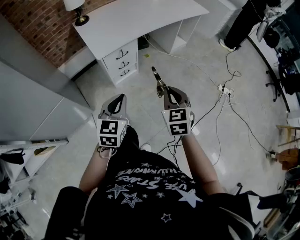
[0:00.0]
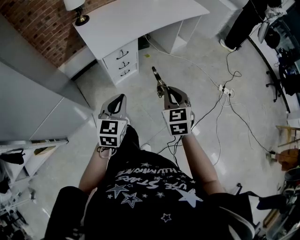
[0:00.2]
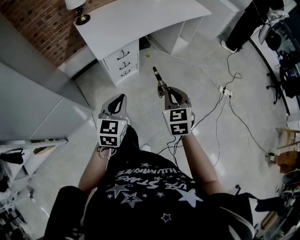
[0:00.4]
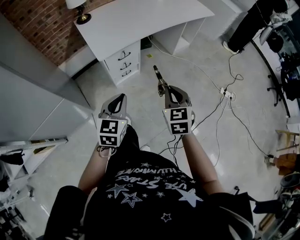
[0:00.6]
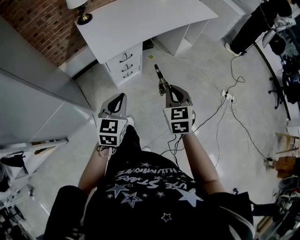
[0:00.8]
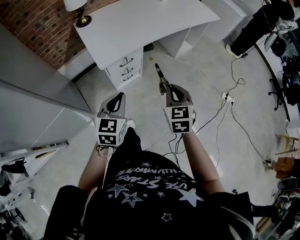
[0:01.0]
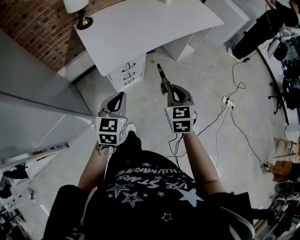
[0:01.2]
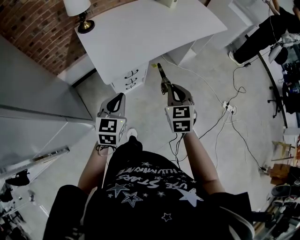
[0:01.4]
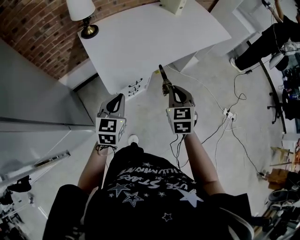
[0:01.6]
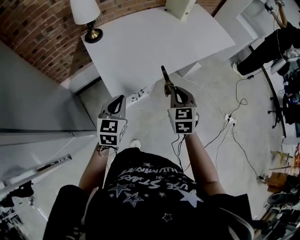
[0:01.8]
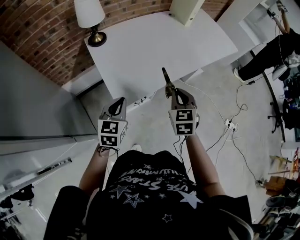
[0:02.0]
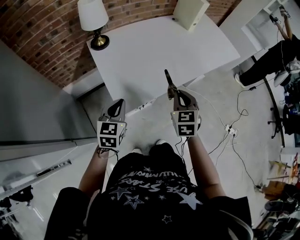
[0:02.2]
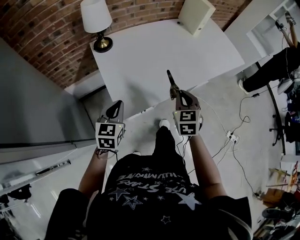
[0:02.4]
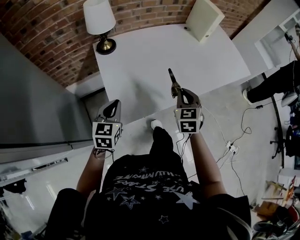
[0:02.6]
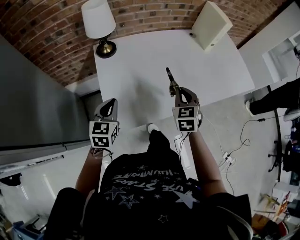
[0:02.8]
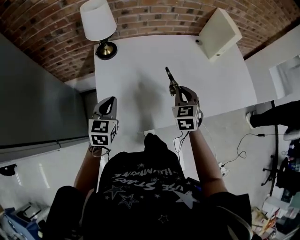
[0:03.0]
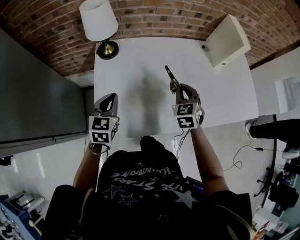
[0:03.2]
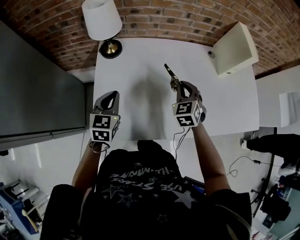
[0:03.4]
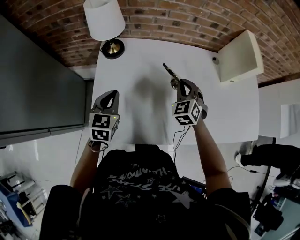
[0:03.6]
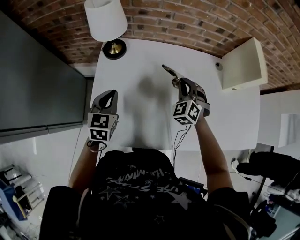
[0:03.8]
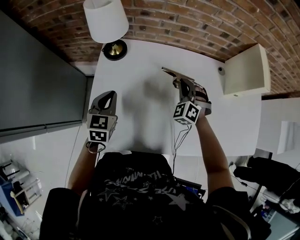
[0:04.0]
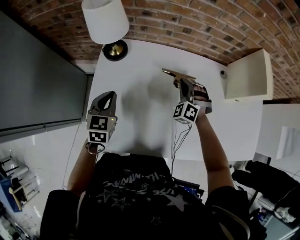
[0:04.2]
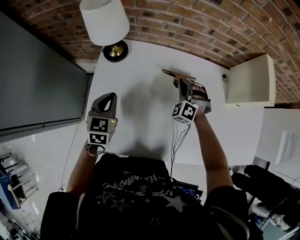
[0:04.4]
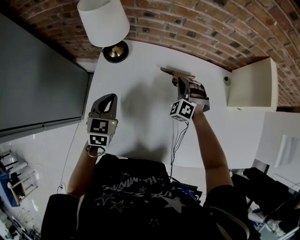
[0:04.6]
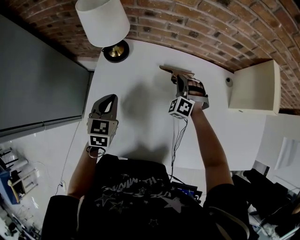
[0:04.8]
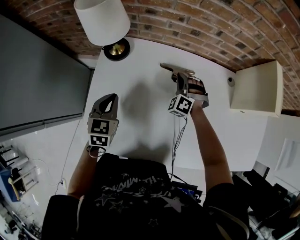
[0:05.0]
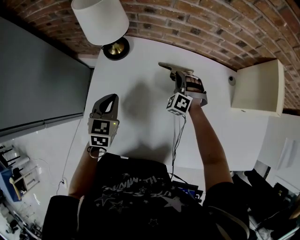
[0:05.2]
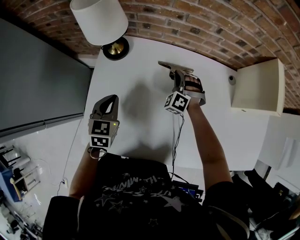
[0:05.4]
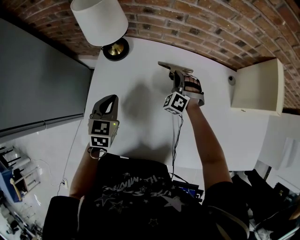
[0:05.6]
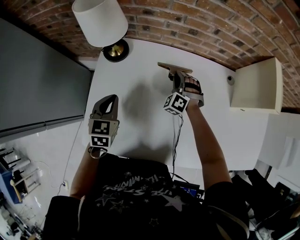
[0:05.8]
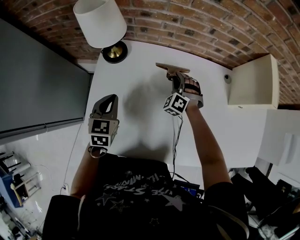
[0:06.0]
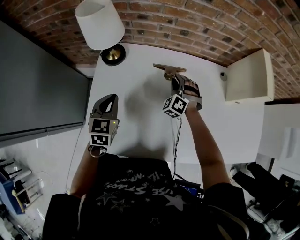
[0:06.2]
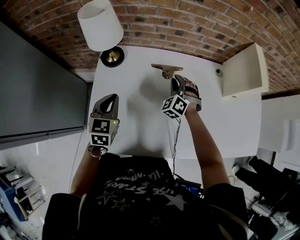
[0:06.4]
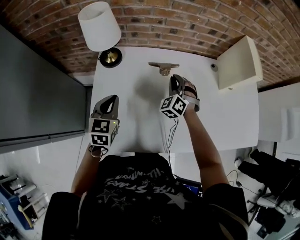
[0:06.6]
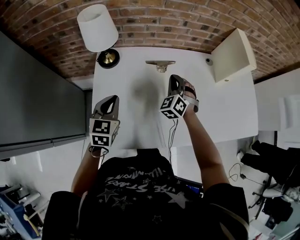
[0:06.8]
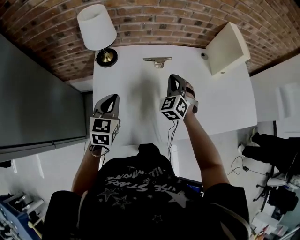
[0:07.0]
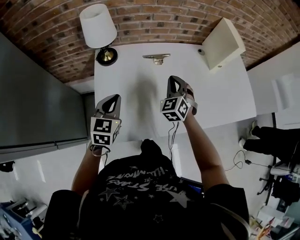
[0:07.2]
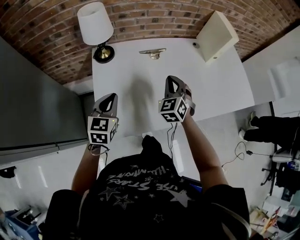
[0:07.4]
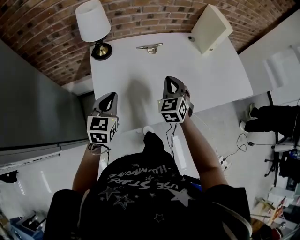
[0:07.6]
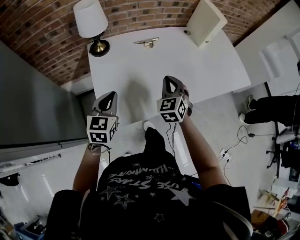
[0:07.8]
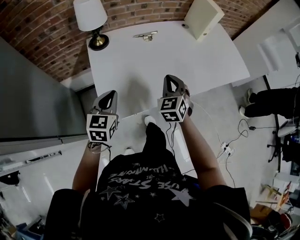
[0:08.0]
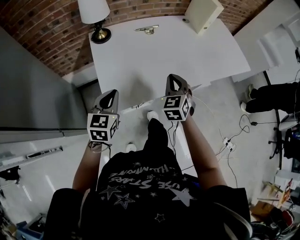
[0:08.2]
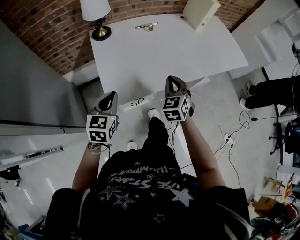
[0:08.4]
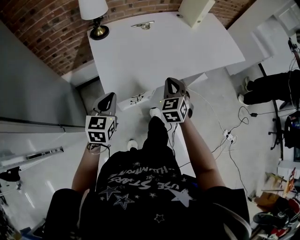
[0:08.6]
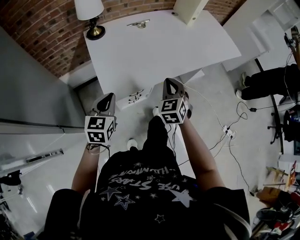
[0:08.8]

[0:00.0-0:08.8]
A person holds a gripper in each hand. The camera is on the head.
0:00.0 to 0:01.4: The left gripper travels forward and to the left by some 25 cm. Meanwhile the right gripper is displaced forward by roughly 25 cm.
0:01.4 to 0:03.0: Both grippers move forward, approximately 35 cm. The left gripper rotates roughly 20 degrees; the right gripper turns by about 20 degrees.
0:03.0 to 0:04.4: The right gripper goes some 25 cm forward and downward, and rolls counterclockwise, seen from behind, by some 60 degrees. Meanwhile the left gripper shifts approximately 15 cm forward.
0:04.4 to 0:05.8: The right gripper shifts by approximately 5 cm.
0:05.8 to 0:07.4: The left gripper moves backward and upward, some 15 cm, and turns by about 30 degrees, while the right gripper goes about 30 cm backward and upward, and rolls clockwise, seen from behind, by approximately 40 degrees.
0:07.4 to 0:08.8: Both grippers travel together backward, some 25 cm.

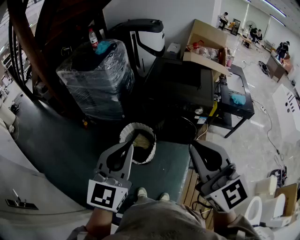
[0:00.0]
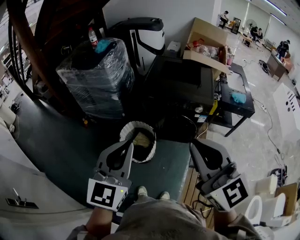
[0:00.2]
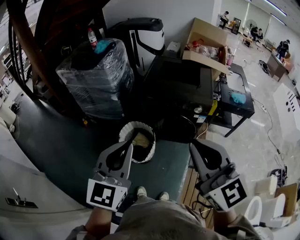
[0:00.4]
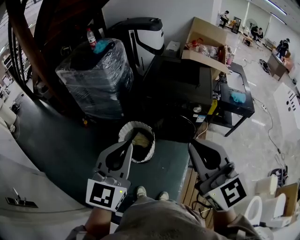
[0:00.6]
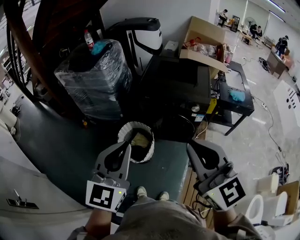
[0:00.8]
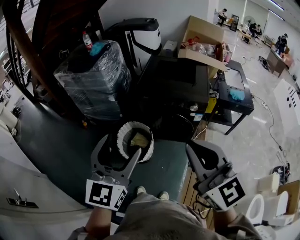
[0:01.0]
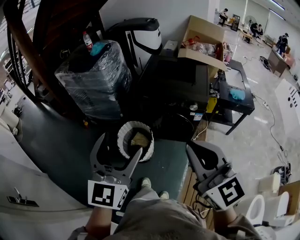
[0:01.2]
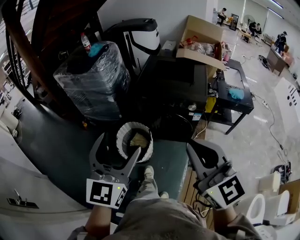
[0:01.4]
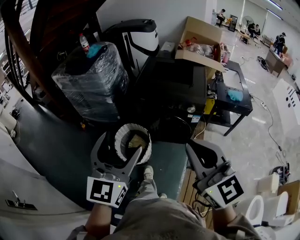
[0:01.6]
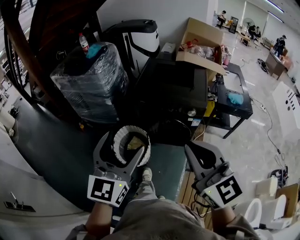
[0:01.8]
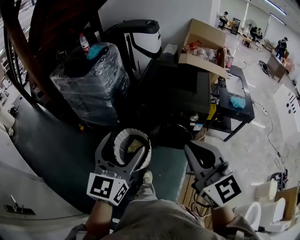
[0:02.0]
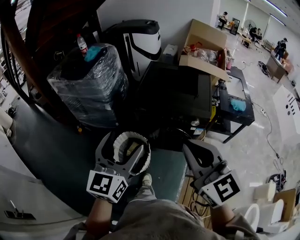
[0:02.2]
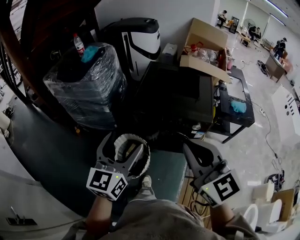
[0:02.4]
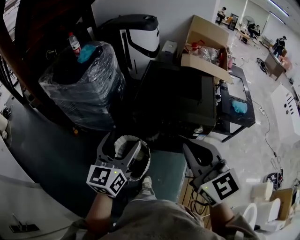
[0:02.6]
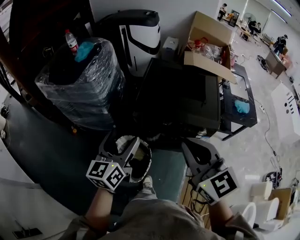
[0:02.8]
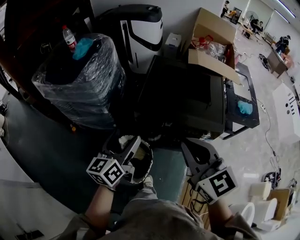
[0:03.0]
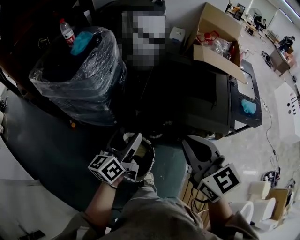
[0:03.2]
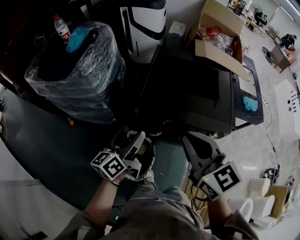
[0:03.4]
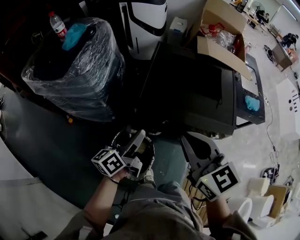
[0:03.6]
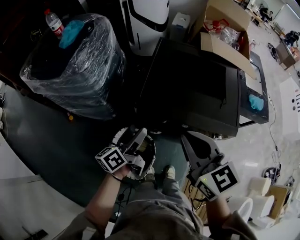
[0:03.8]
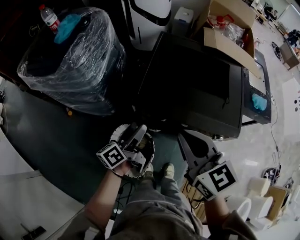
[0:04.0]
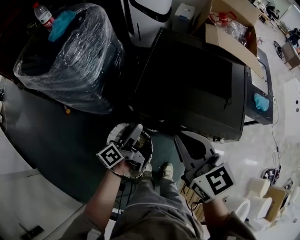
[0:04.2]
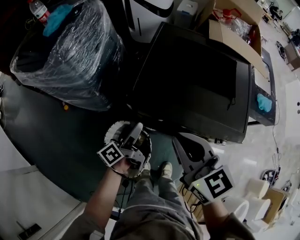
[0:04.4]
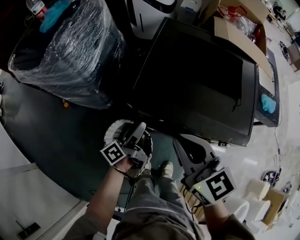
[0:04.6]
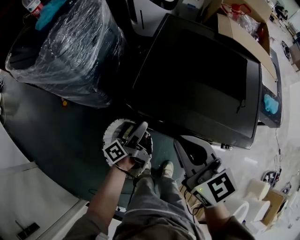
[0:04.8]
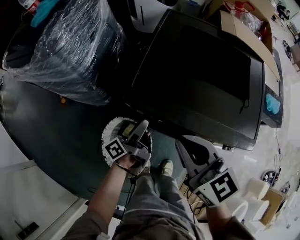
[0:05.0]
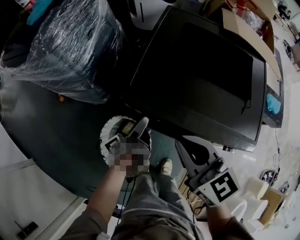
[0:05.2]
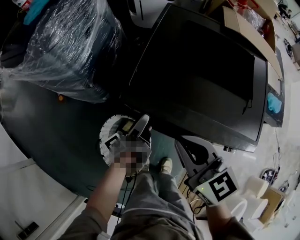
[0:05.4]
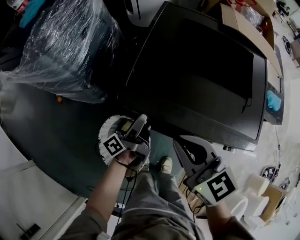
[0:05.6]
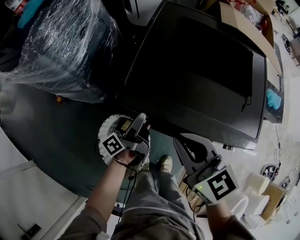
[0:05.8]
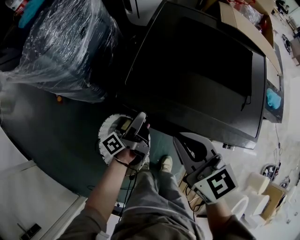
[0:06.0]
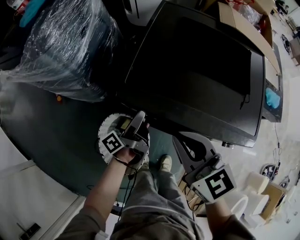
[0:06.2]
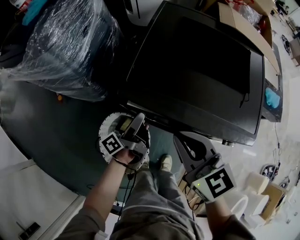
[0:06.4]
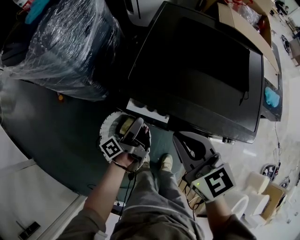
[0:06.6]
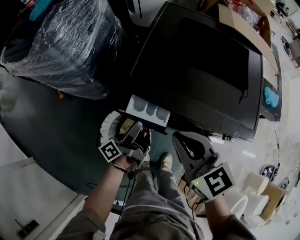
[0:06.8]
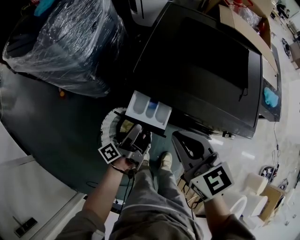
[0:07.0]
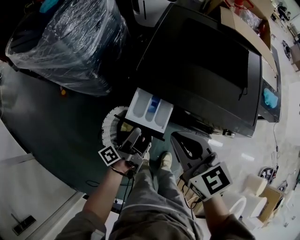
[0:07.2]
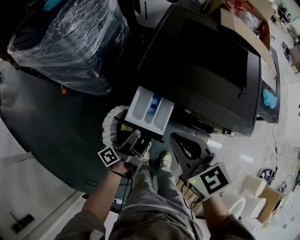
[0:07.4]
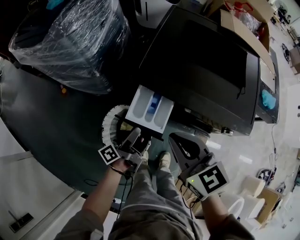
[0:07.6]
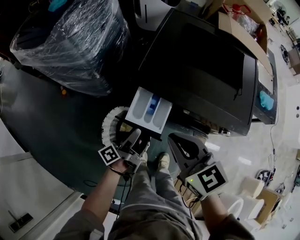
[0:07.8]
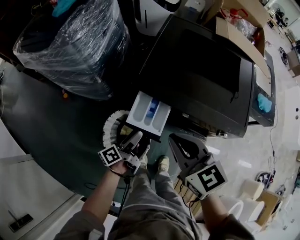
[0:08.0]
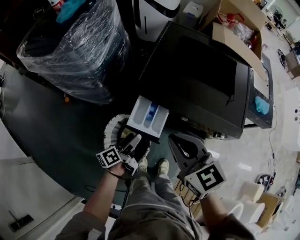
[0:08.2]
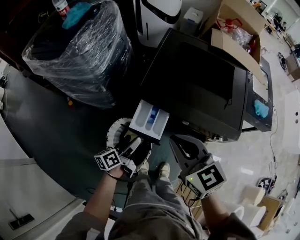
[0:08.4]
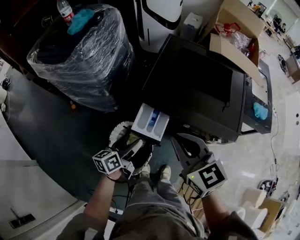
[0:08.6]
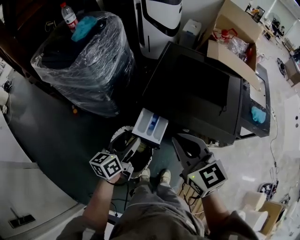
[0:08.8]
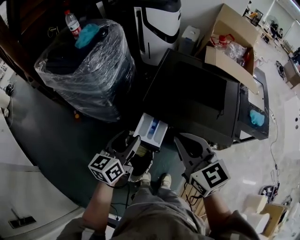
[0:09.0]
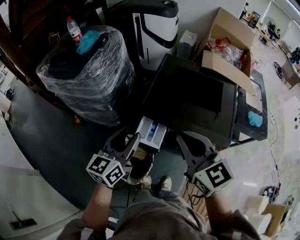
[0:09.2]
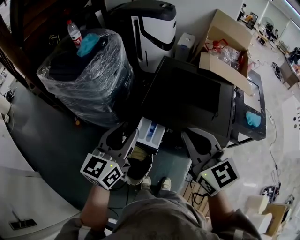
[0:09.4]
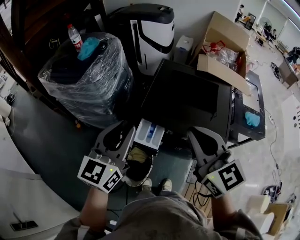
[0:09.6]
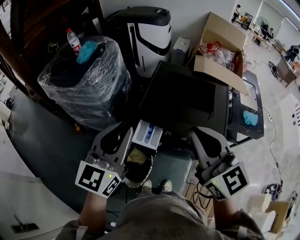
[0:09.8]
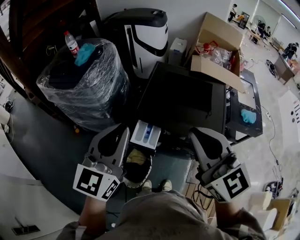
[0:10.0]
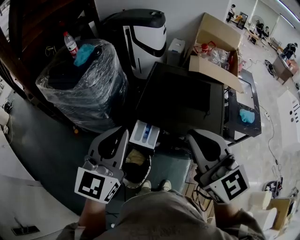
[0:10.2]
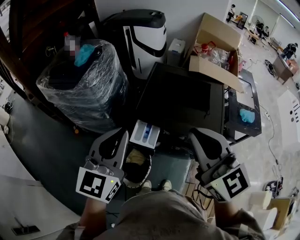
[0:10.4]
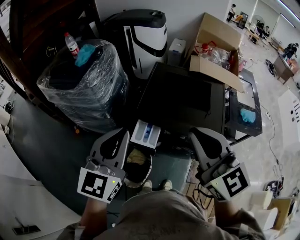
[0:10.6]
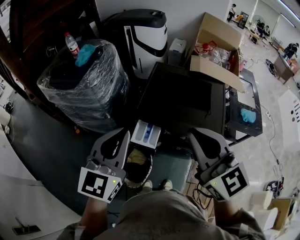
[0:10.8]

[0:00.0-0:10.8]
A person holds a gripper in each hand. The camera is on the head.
0:00.0 to 0:01.6: The two grippers go some 5 cm to the right. The left gripper opens its fingers.
0:01.6 to 0:03.0: The right gripper goes approximately 30 cm forward; the left gripper heads forward and downward, covering about 35 cm, and turns by about 40 degrees.
0:03.0 to 0:04.6: Both grippers travel together downward and forward, some 25 cm. The left gripper rotates around the line of its fingers by some 50 degrees, counterclockwise from behind.
0:04.6 to 0:06.2: The right gripper shifts roughly 5 cm downward, while the left gripper shifts by roughly 5 cm.
0:06.2 to 0:07.8: The right gripper goes about 10 cm backward. The left gripper shifts approximately 15 cm backward and to the left.
0:07.8 to 0:09.2: The left gripper travels upward by roughly 30 cm, rotates around the line of its fingers by approximately 60 degrees, clockwise from behind, and closes its fingers. The right gripper shifts roughly 20 cm upward.
0:09.2 to 0:10.8: The right gripper heads upward and backward, covering some 15 cm, while the left gripper moves upward, approximately 15 cm, rotates about 30 degrees, and closes up.

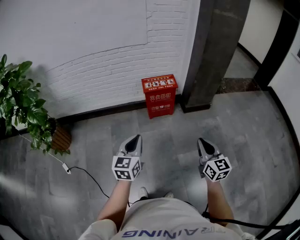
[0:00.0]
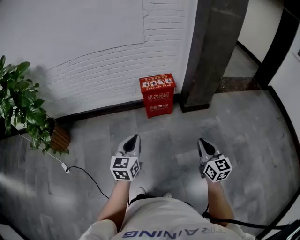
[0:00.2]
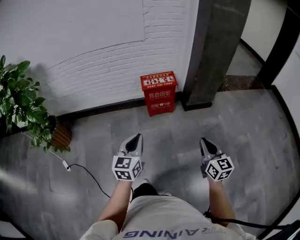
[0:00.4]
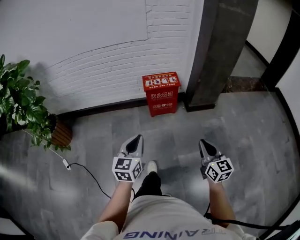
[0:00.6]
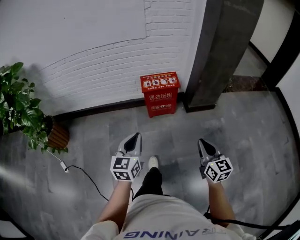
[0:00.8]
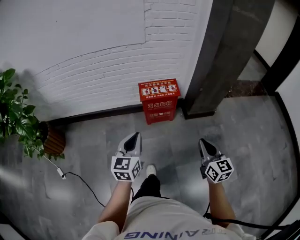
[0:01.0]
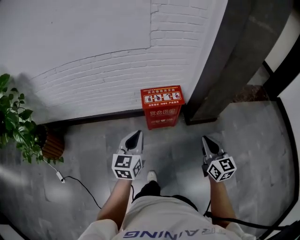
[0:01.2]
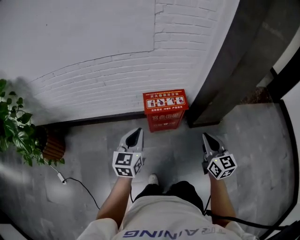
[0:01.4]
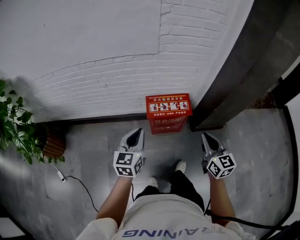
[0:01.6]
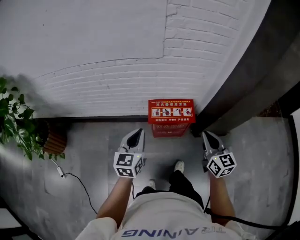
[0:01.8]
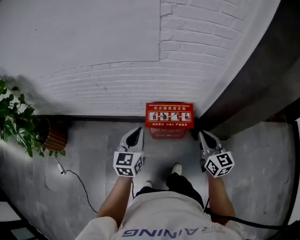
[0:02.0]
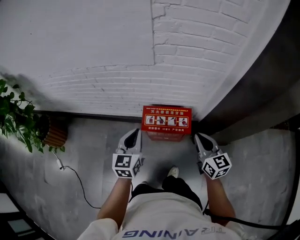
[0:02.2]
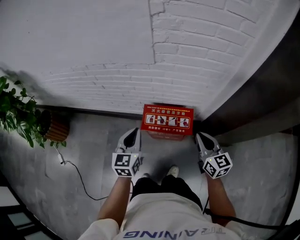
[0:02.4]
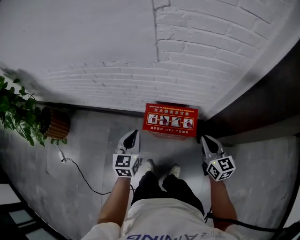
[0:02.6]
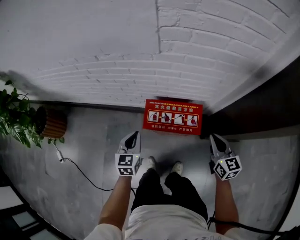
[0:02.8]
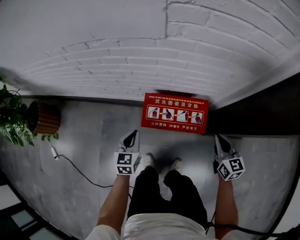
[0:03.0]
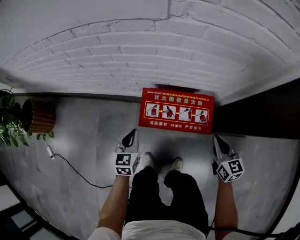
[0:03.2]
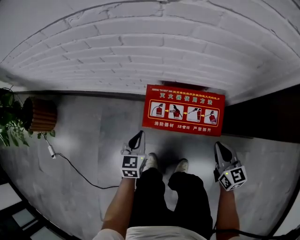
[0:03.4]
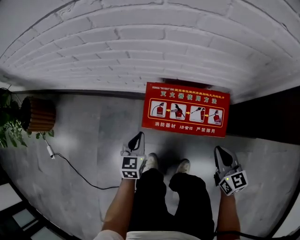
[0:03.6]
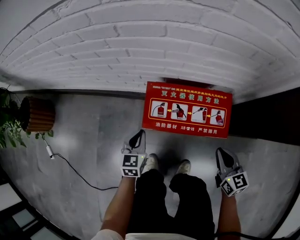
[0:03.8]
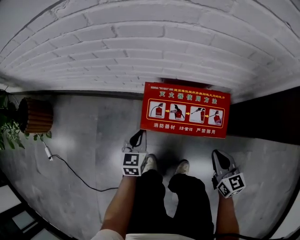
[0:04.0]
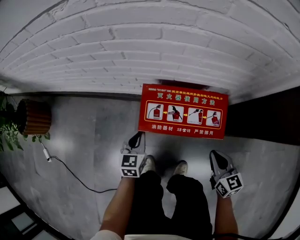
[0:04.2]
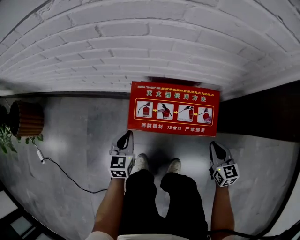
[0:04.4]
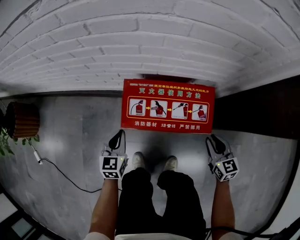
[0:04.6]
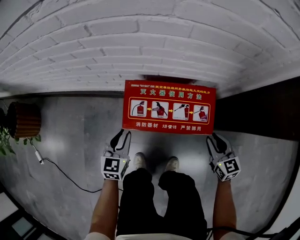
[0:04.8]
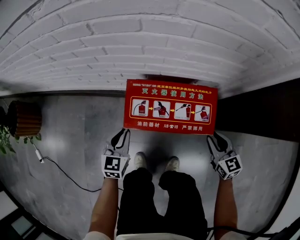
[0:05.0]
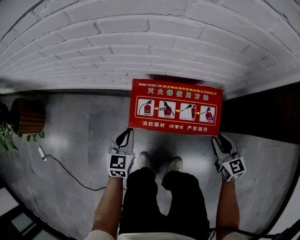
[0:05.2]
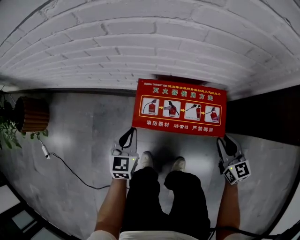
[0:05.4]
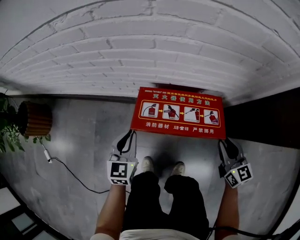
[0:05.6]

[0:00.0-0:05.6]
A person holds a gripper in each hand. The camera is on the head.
0:00.0 to 0:01.4: The two grippers go approximately 40 cm forward.
0:01.4 to 0:02.8: The left gripper shifts roughly 30 cm forward and downward, and swivels approximately 20 degrees. The right gripper moves forward, downward and to the right, approximately 35 cm.
0:02.8 to 0:04.2: Both grippers travel together downward, about 25 cm.
0:04.2 to 0:05.6: The right gripper heads forward, upward and to the right, covering some 10 cm, and opens, while the left gripper moves upward, some 10 cm.
